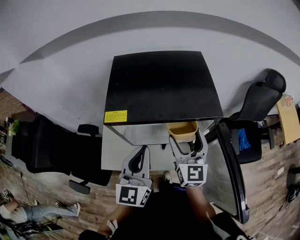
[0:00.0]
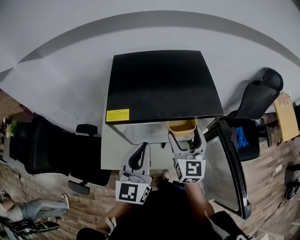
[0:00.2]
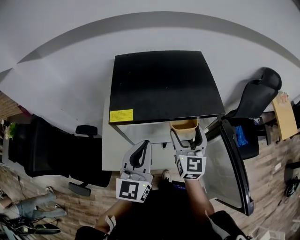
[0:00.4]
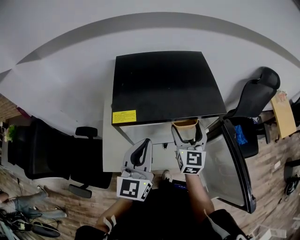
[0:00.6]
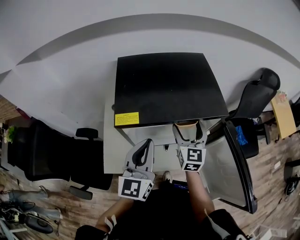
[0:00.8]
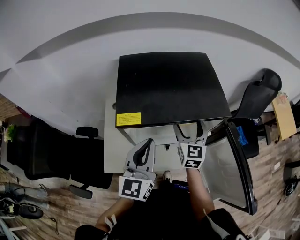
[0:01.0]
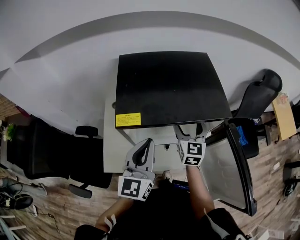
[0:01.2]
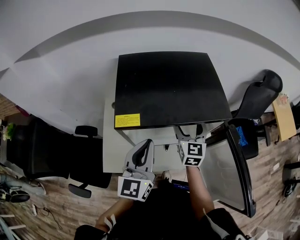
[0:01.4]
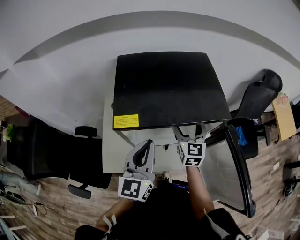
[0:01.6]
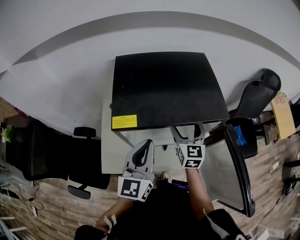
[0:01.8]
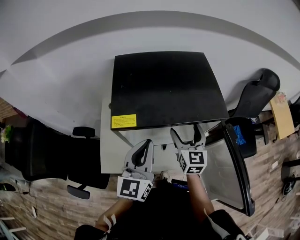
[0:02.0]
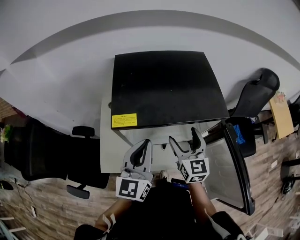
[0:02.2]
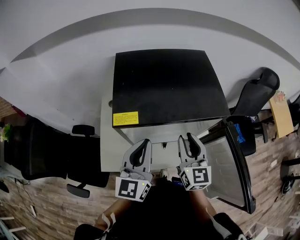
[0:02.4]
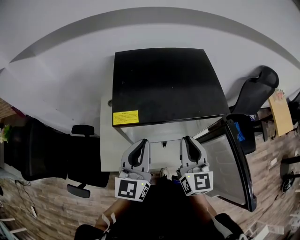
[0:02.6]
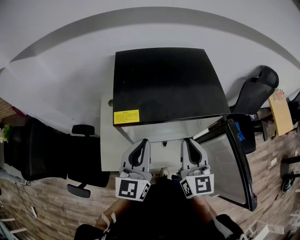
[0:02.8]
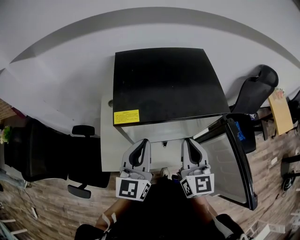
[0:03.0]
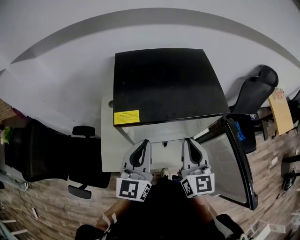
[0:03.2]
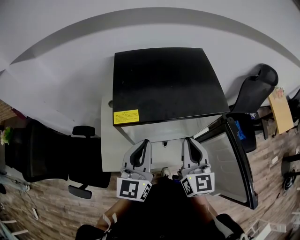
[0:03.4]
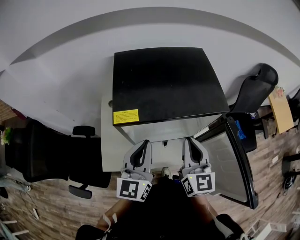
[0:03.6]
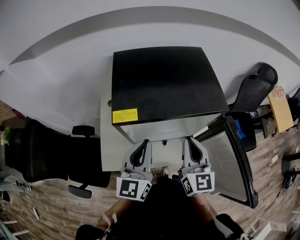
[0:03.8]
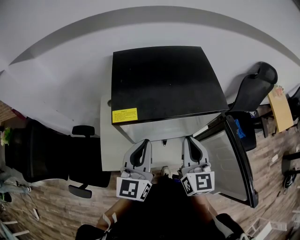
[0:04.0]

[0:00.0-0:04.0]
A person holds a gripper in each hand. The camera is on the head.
0:00.0 to 0:01.4: The right gripper is displaced forward by about 10 cm.
0:01.4 to 0:02.6: The right gripper shifts some 15 cm backward and upward, and closes.
0:02.6 to 0:04.0: Both grippers stay about where they are.

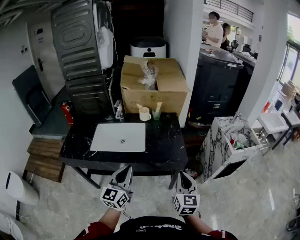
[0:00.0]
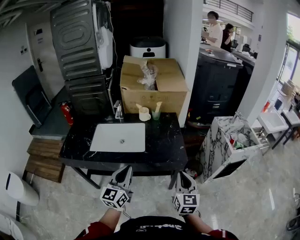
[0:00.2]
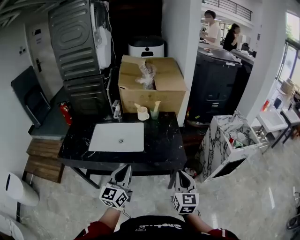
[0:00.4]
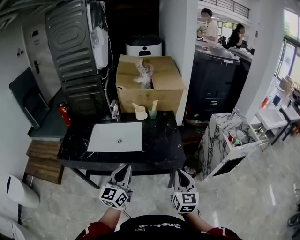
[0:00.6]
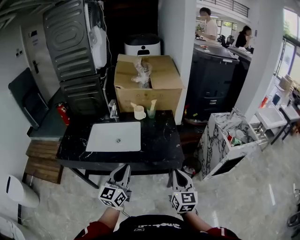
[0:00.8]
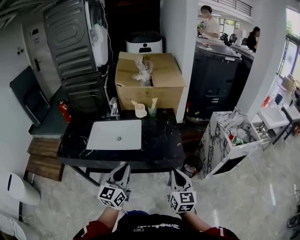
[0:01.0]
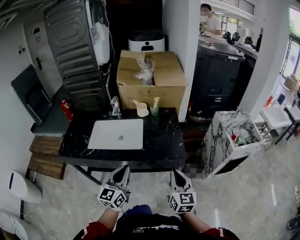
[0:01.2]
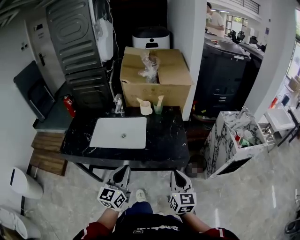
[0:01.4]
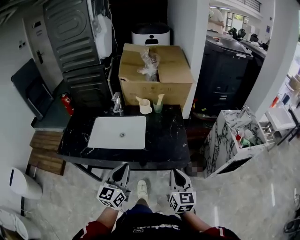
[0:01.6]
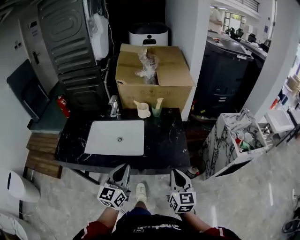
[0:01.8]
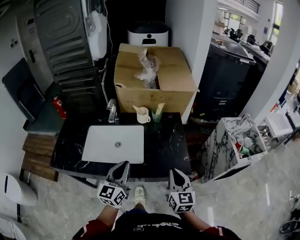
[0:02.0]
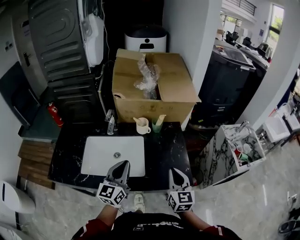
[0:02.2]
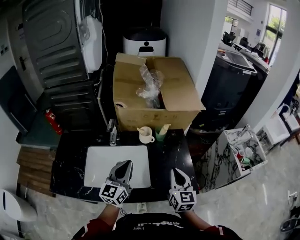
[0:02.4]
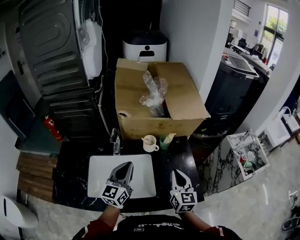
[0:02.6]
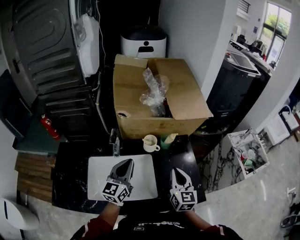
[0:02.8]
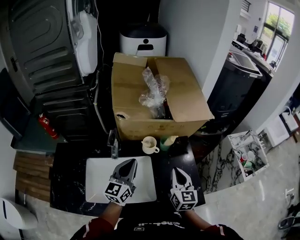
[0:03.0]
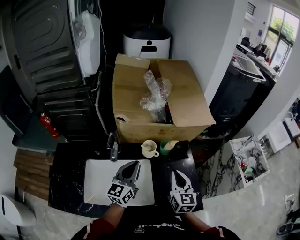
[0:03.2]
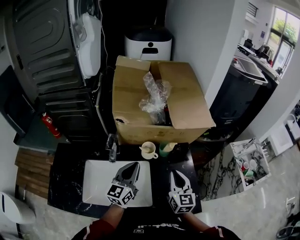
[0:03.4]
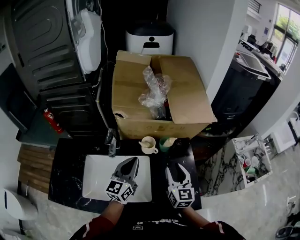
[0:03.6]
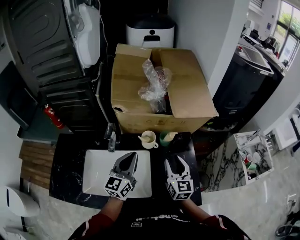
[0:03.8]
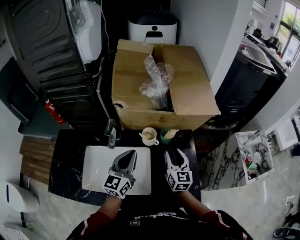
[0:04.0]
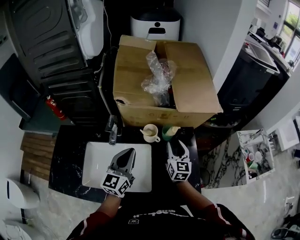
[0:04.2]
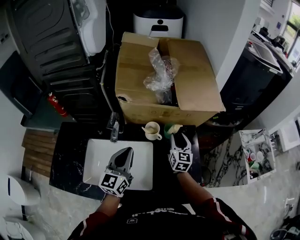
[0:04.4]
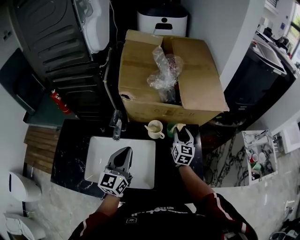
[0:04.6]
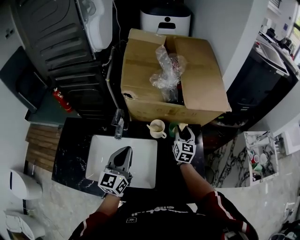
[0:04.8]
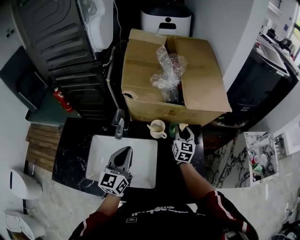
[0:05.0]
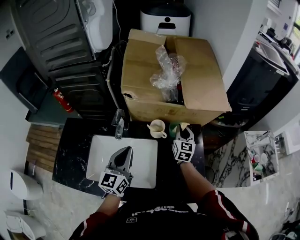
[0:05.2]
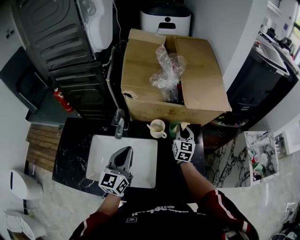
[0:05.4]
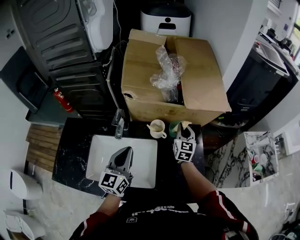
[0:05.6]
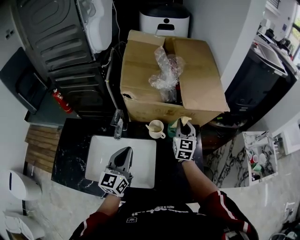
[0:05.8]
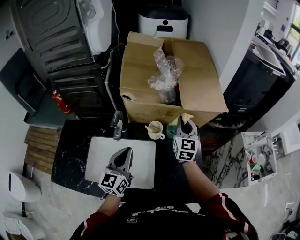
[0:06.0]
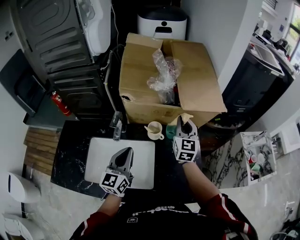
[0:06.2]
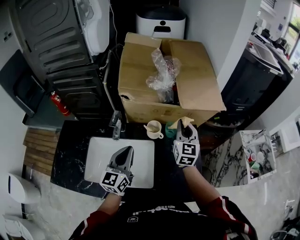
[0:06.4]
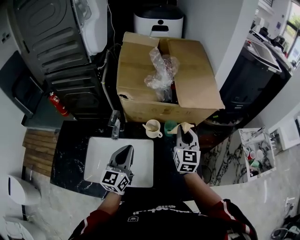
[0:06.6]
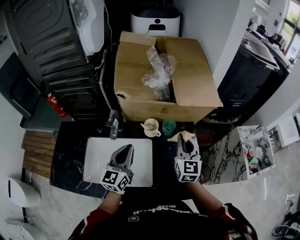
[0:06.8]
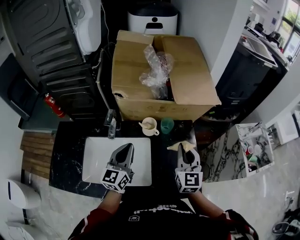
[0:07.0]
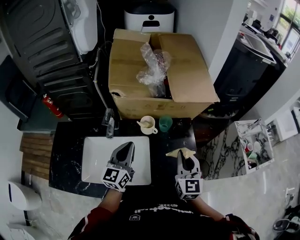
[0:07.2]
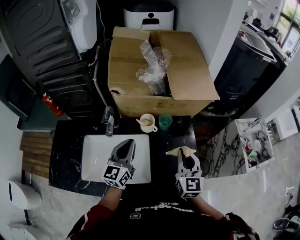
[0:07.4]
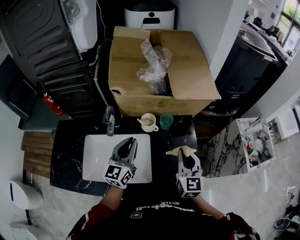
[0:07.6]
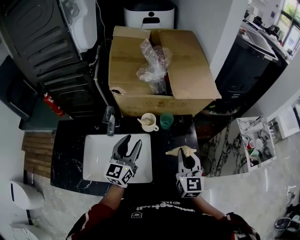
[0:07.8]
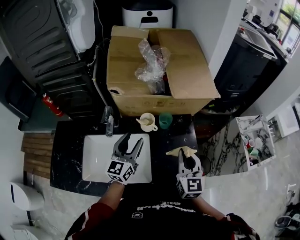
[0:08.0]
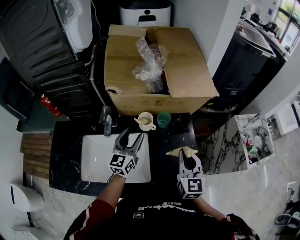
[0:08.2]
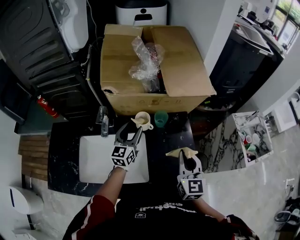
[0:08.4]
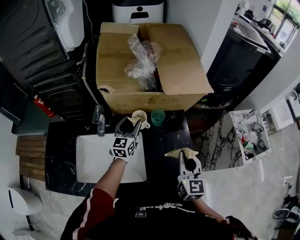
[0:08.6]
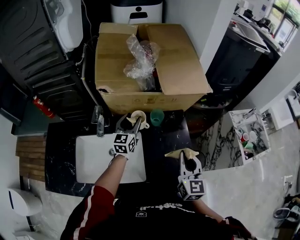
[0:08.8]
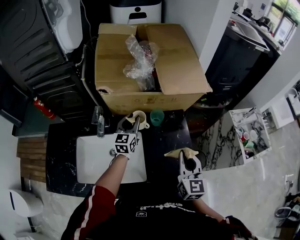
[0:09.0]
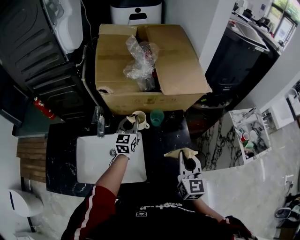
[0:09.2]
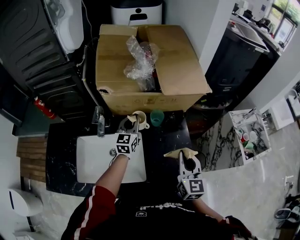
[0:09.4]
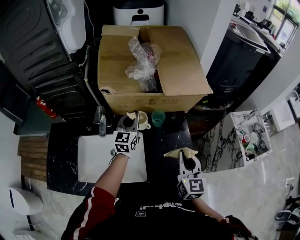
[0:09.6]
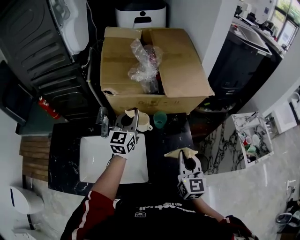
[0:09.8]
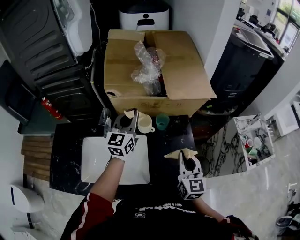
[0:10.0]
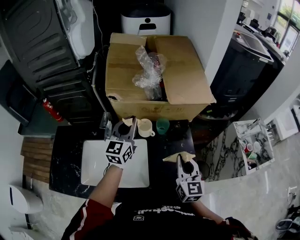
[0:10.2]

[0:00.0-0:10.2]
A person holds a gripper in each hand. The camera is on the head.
0:00.0 to 0:01.4: The grippers stay close to where they were, moving slightly.
0:01.4 to 0:03.0: The two grippers go approximately 40 cm forward.
0:03.0 to 0:04.4: The right gripper heads forward and downward, covering some 20 cm, and opens.
0:04.4 to 0:05.8: The right gripper travels upward by about 5 cm, and closes.
0:05.8 to 0:07.2: The right gripper shifts some 20 cm backward.
0:07.2 to 0:08.8: The left gripper goes some 15 cm forward and downward, and opens.
0:08.8 to 0:10.2: The left gripper shifts approximately 15 cm upward, and closes.

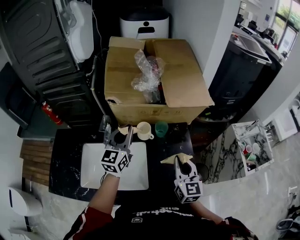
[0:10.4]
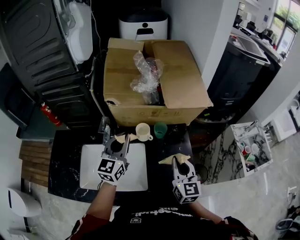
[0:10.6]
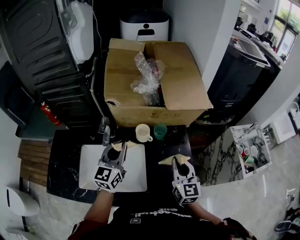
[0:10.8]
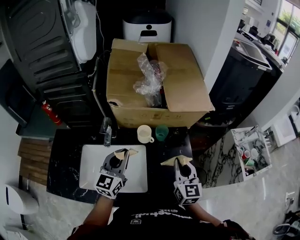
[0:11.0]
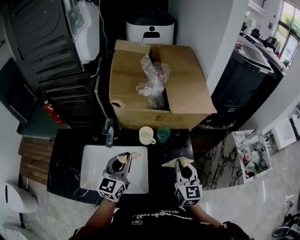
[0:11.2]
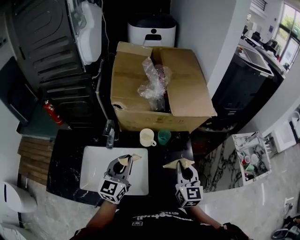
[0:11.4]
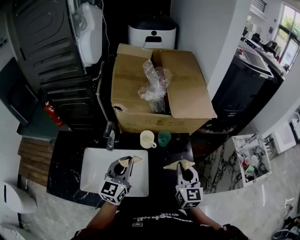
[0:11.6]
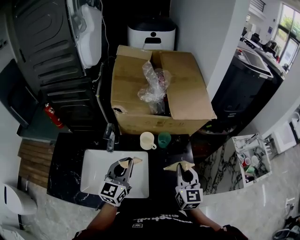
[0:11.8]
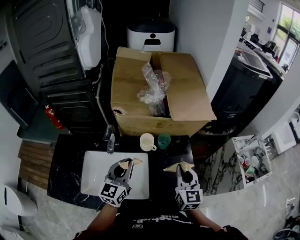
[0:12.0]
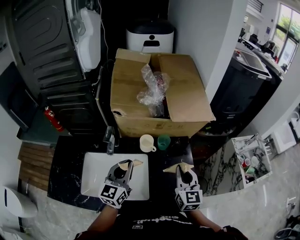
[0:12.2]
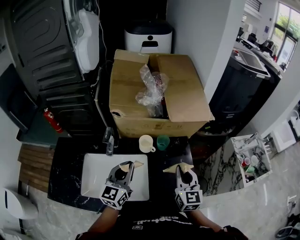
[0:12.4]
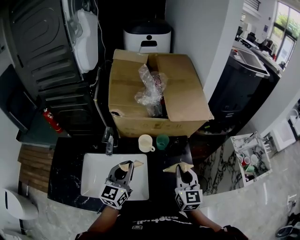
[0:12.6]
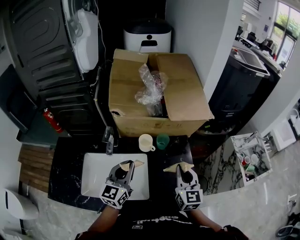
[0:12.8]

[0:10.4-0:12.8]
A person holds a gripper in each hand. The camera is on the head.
0:10.4 to 0:11.6: The left gripper moves backward, about 10 cm.
0:11.6 to 0:12.8: Both grippers stay put.

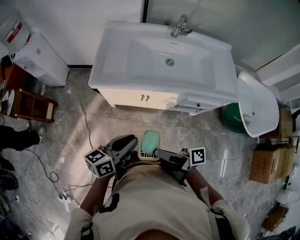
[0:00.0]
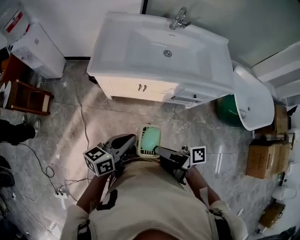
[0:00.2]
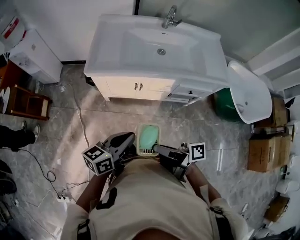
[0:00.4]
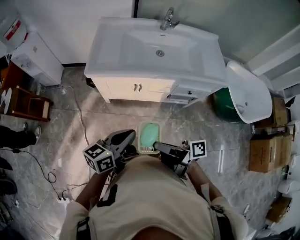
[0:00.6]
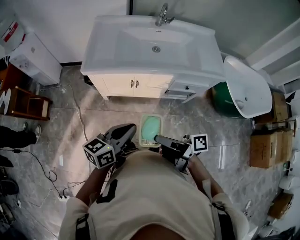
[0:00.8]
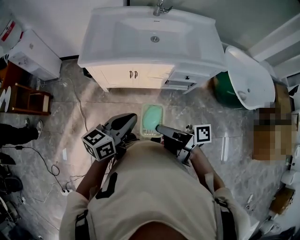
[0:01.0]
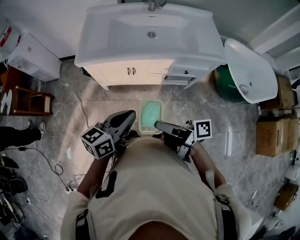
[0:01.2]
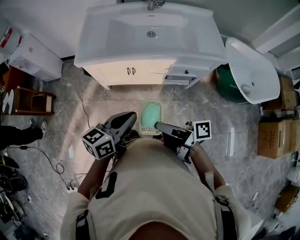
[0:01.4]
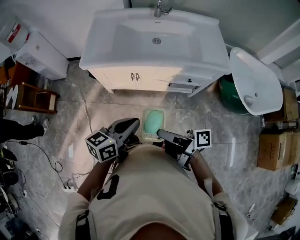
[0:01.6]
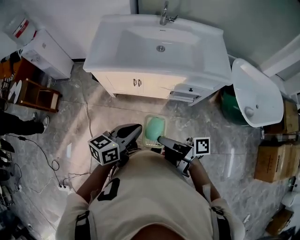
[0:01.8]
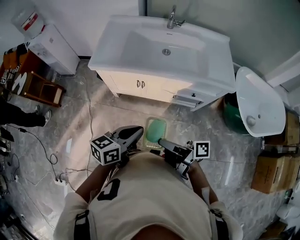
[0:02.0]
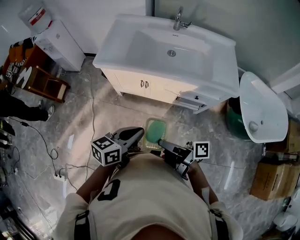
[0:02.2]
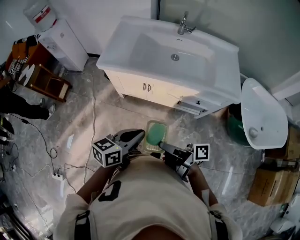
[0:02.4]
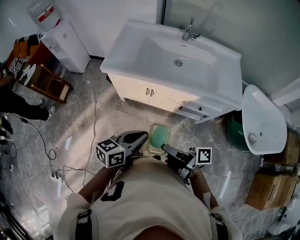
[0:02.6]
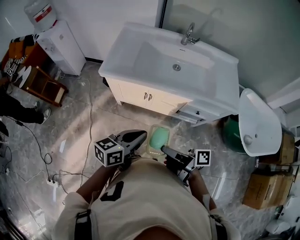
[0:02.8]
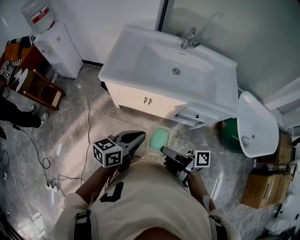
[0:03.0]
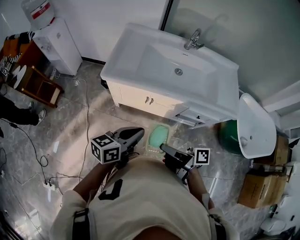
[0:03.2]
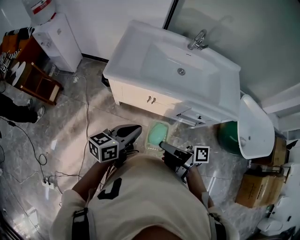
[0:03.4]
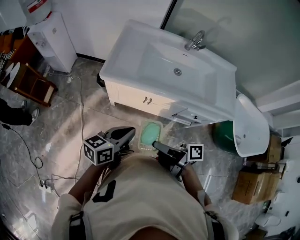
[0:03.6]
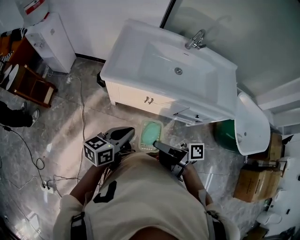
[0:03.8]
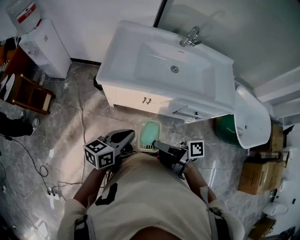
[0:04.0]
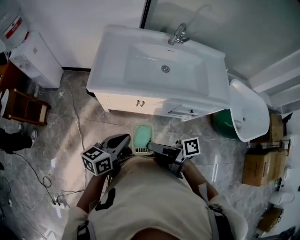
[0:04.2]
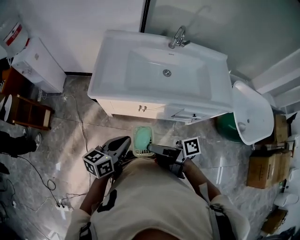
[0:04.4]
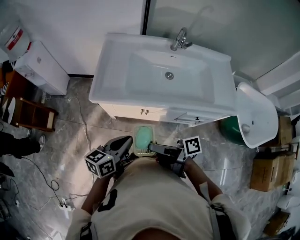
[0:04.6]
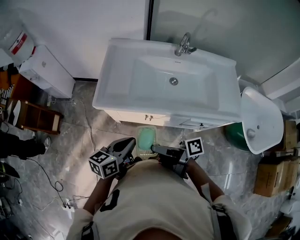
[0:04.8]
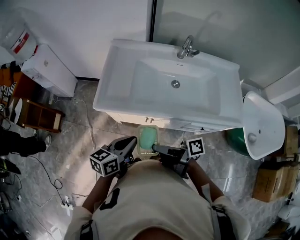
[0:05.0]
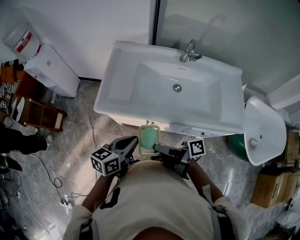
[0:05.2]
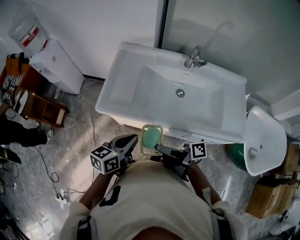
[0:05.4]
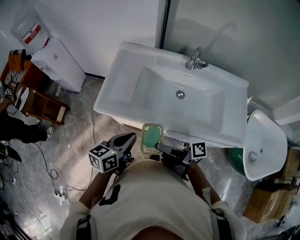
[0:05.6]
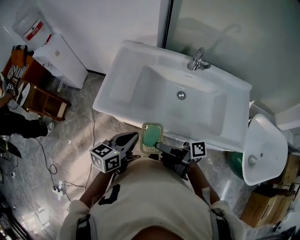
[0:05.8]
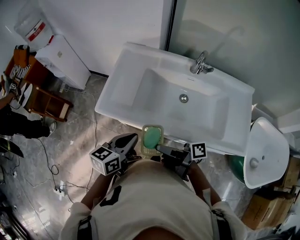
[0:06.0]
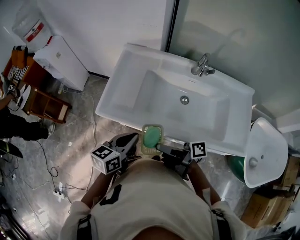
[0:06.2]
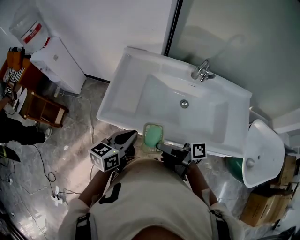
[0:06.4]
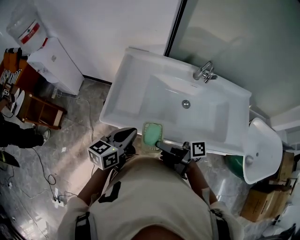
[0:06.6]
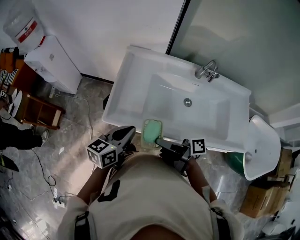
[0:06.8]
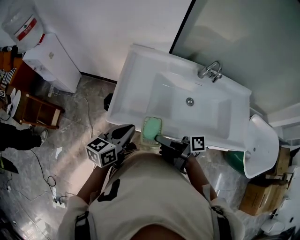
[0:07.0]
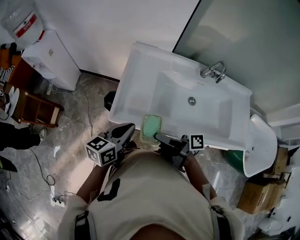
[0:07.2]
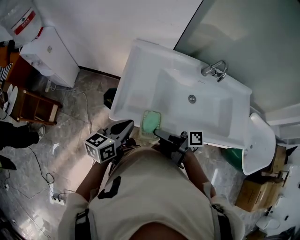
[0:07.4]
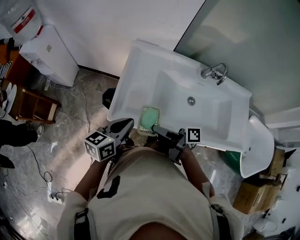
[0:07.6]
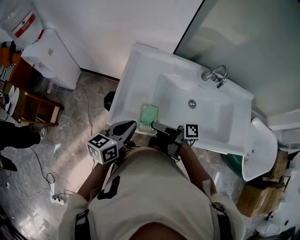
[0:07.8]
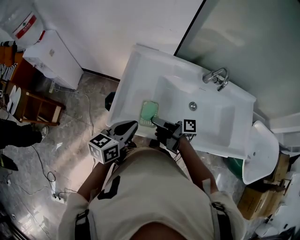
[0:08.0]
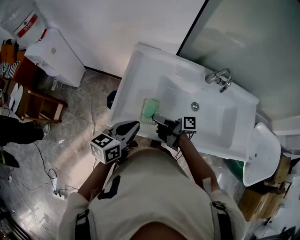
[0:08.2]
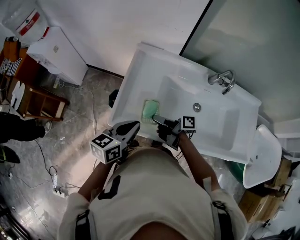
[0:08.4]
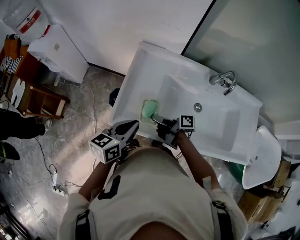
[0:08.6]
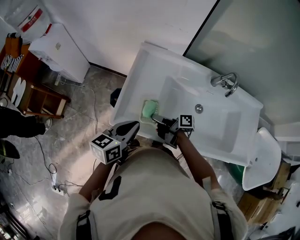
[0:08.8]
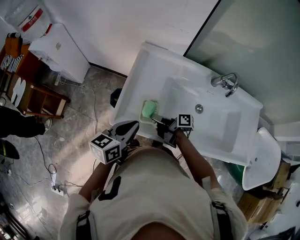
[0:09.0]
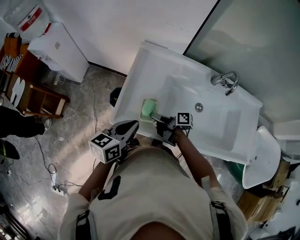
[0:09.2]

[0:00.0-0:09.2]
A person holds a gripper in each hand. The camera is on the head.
0:00.0 to 0:01.6: The left gripper ends up approximately 15 cm from where it was.
0:01.6 to 0:03.0: The left gripper changes place by some 5 cm.
0:03.0 to 0:04.6: The left gripper ends up approximately 15 cm from where it was.
0:04.6 to 0:06.2: The left gripper changes place by some 15 cm.
0:06.2 to 0:07.6: The left gripper changes place by approximately 20 cm.
